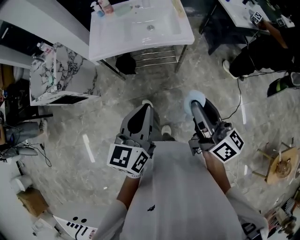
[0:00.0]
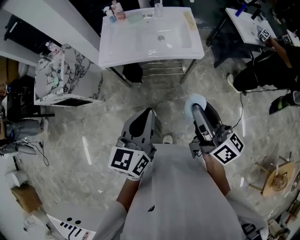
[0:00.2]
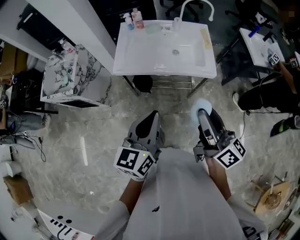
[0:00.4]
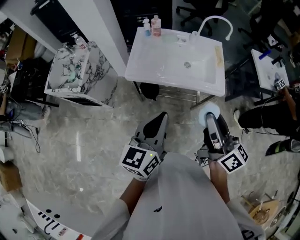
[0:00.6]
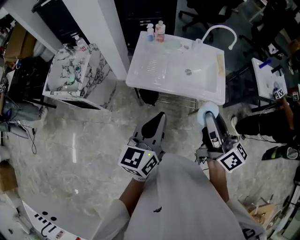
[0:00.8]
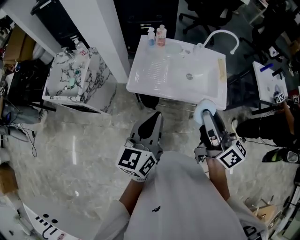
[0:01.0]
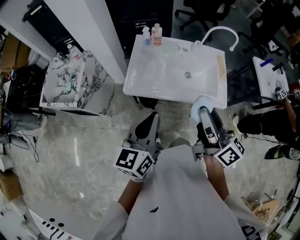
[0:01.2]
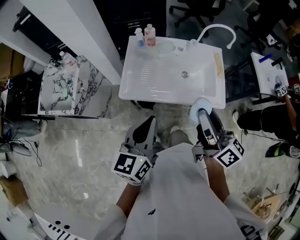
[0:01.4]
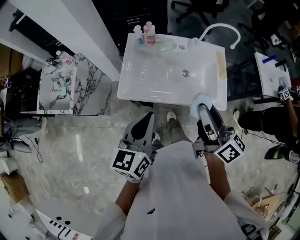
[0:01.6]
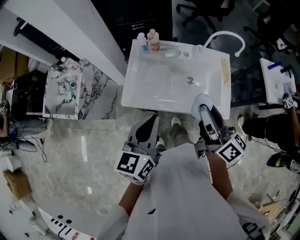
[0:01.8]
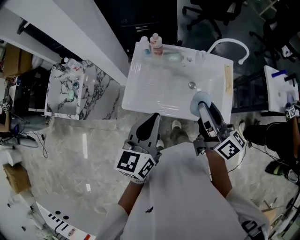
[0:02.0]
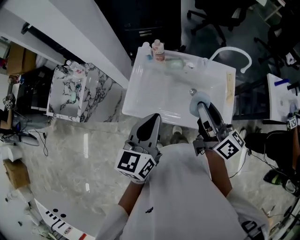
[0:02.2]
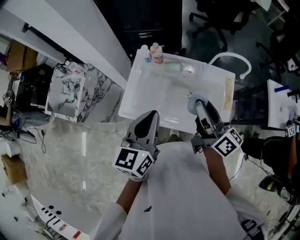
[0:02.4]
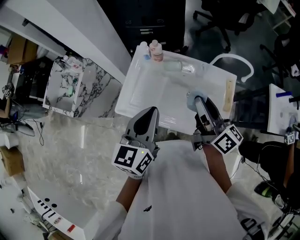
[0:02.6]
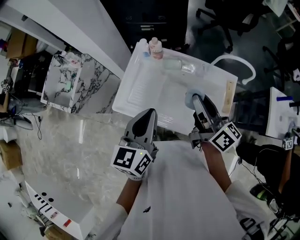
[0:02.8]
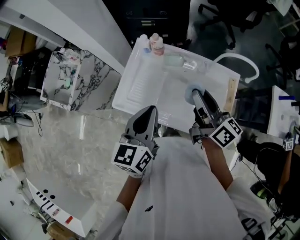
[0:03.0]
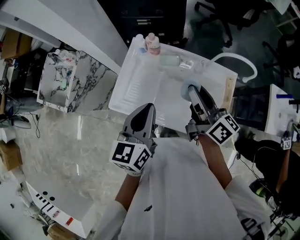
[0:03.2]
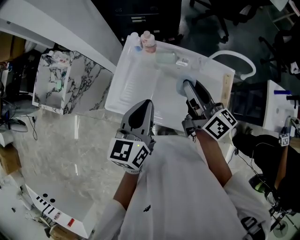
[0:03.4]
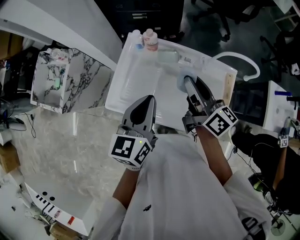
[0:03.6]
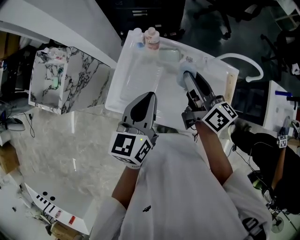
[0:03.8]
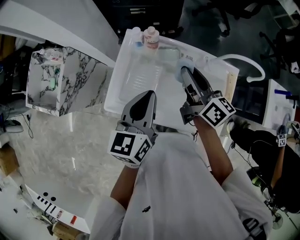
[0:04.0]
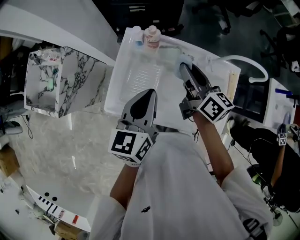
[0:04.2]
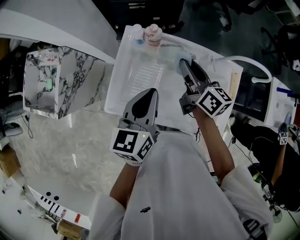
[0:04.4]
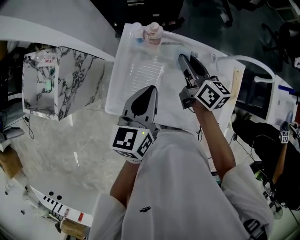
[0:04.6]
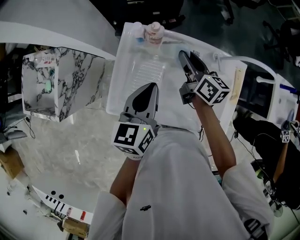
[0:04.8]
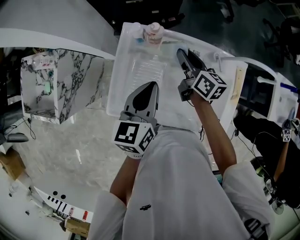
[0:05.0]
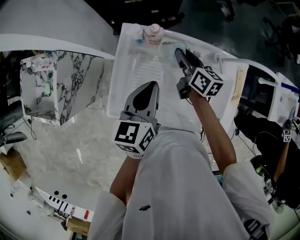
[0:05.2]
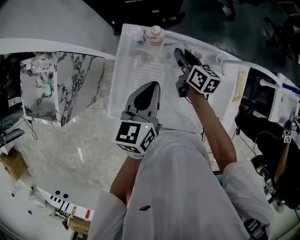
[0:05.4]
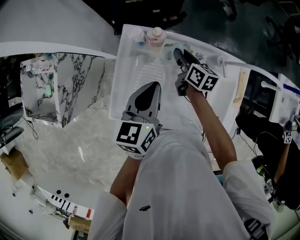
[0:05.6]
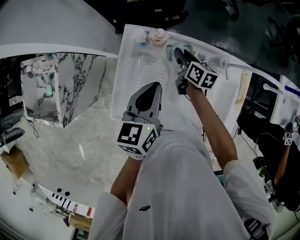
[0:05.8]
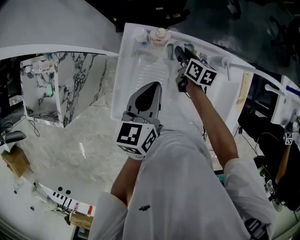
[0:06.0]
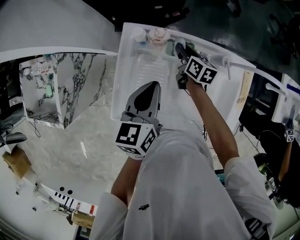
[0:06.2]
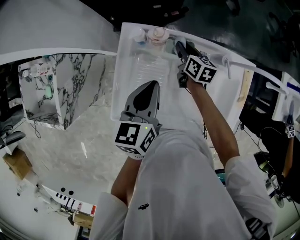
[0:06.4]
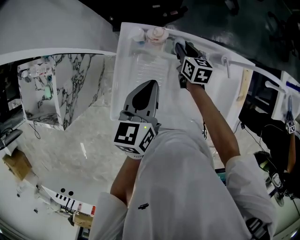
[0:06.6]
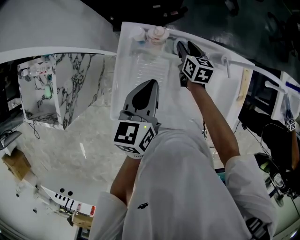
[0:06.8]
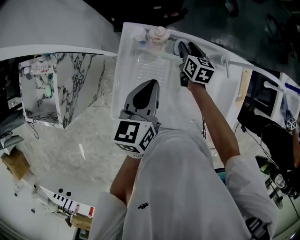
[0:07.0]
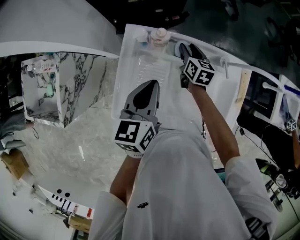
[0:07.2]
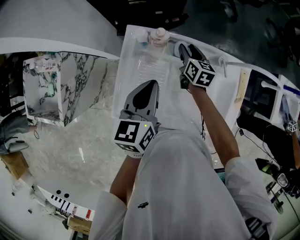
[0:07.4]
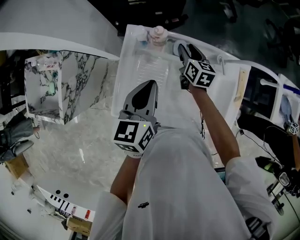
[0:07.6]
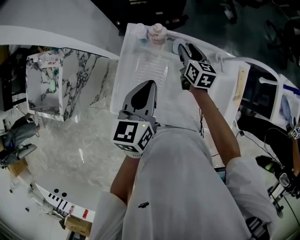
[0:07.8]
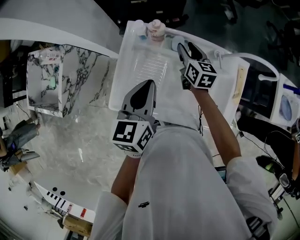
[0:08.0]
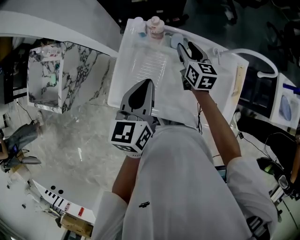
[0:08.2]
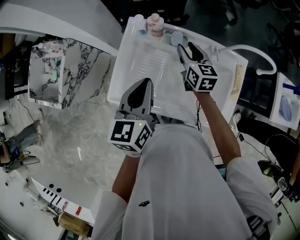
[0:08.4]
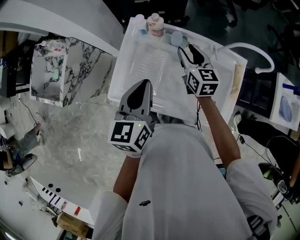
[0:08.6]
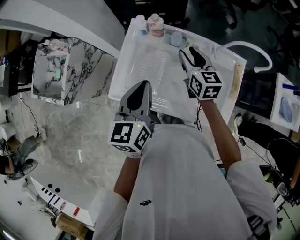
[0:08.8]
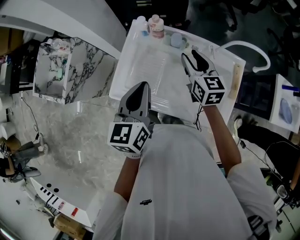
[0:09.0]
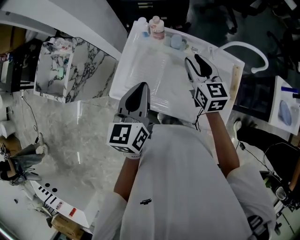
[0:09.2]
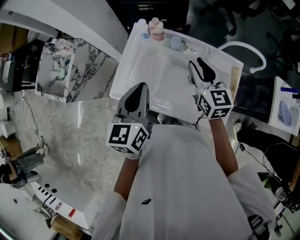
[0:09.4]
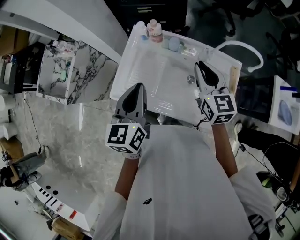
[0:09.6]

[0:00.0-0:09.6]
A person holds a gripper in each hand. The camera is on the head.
0:00.0 to 0:01.6: Both grippers move forward, approximately 35 cm.
0:01.6 to 0:03.2: The right gripper shifts roughly 25 cm forward. The left gripper heads forward and to the right, covering roughly 20 cm.
0:03.2 to 0:04.8: Both grippers move forward and downward, about 20 cm.
0:04.8 to 0:06.4: The left gripper moves forward, some 5 cm. Meanwhile the right gripper is displaced downward and forward by approximately 15 cm.
0:06.4 to 0:08.0: The right gripper heads upward, covering roughly 10 cm. Meanwhile the left gripper travels backward by approximately 5 cm.
0:08.0 to 0:09.6: The left gripper goes about 10 cm backward and upward. Meanwhile the right gripper goes about 25 cm upward and backward, swivels some 20 degrees, and closes up.

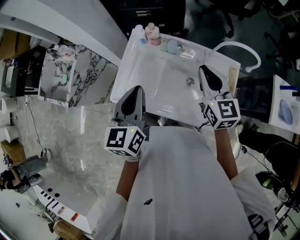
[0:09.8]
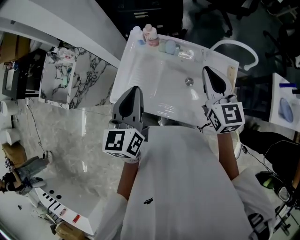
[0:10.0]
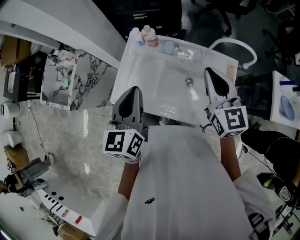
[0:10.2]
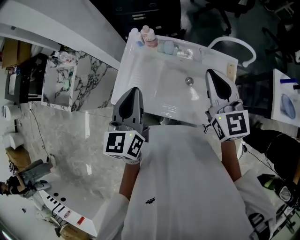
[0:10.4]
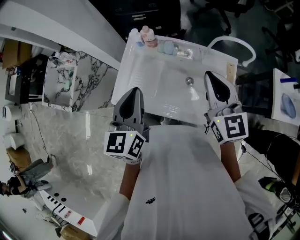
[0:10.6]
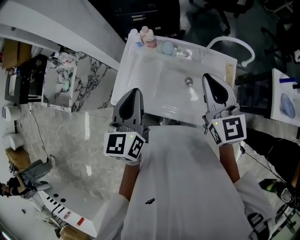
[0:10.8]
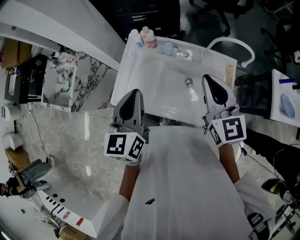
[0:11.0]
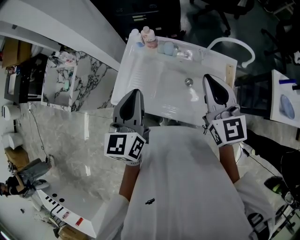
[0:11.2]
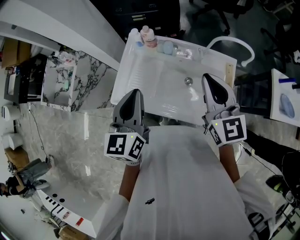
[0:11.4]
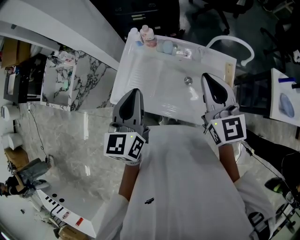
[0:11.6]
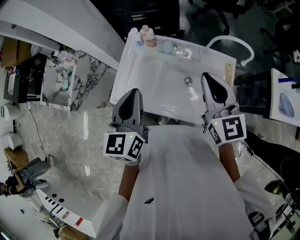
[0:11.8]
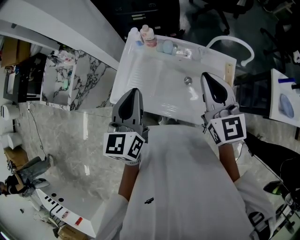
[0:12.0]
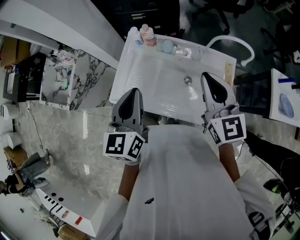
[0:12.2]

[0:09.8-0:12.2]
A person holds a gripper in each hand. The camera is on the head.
0:09.8 to 0:11.0: The right gripper moves upward and backward, roughly 10 cm.
0:11.0 to 0:12.2: Neither gripper changes place.

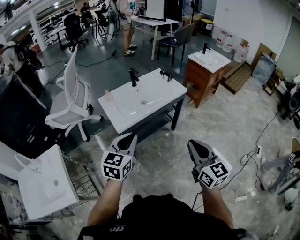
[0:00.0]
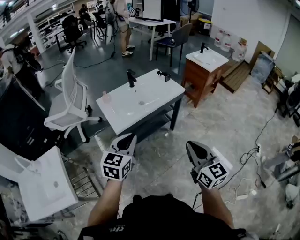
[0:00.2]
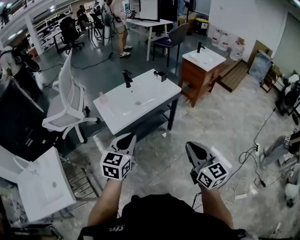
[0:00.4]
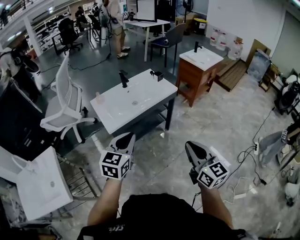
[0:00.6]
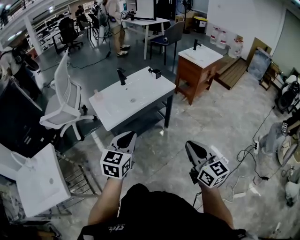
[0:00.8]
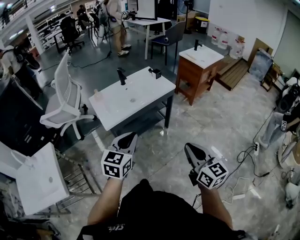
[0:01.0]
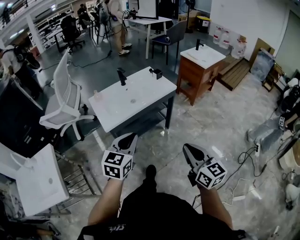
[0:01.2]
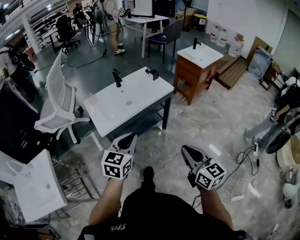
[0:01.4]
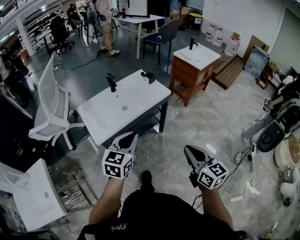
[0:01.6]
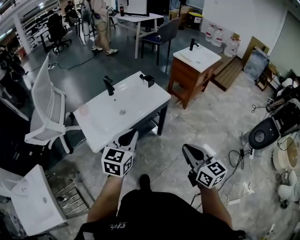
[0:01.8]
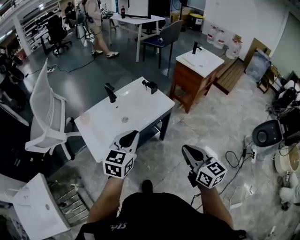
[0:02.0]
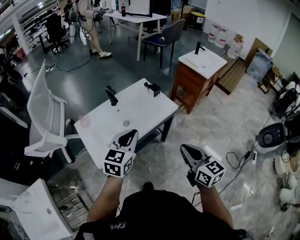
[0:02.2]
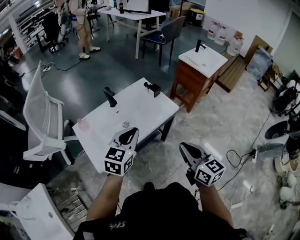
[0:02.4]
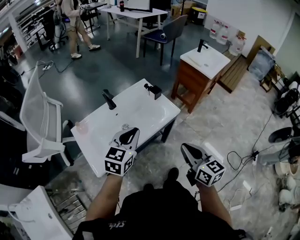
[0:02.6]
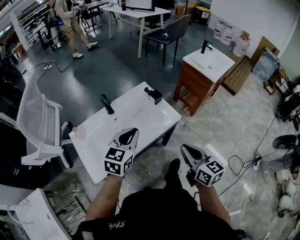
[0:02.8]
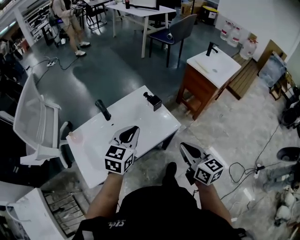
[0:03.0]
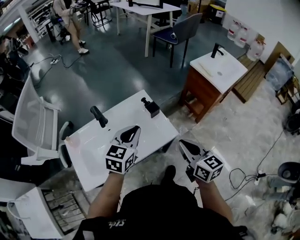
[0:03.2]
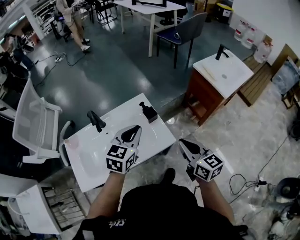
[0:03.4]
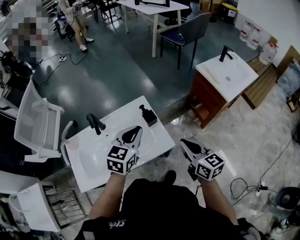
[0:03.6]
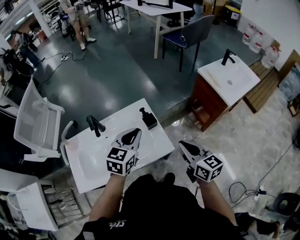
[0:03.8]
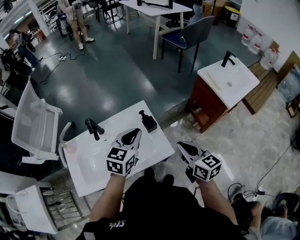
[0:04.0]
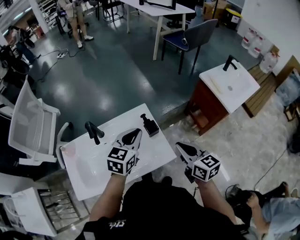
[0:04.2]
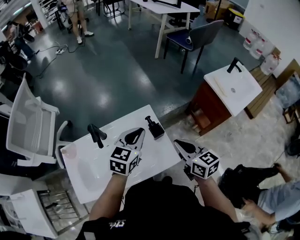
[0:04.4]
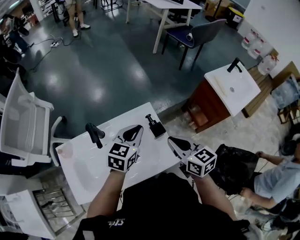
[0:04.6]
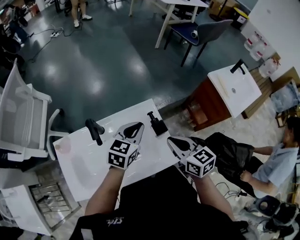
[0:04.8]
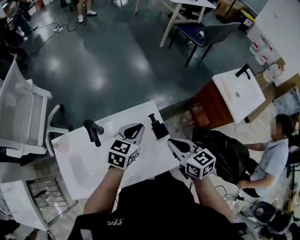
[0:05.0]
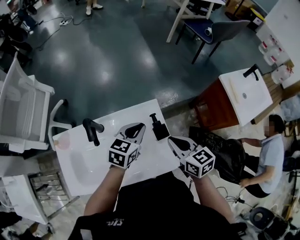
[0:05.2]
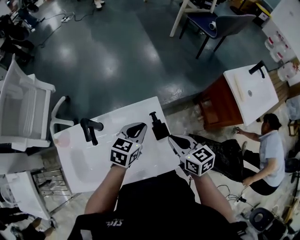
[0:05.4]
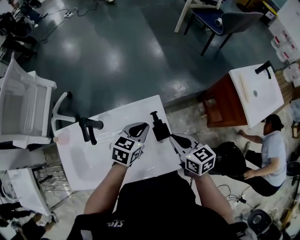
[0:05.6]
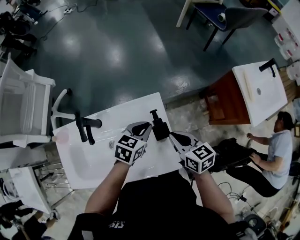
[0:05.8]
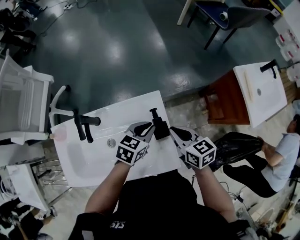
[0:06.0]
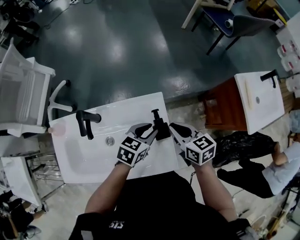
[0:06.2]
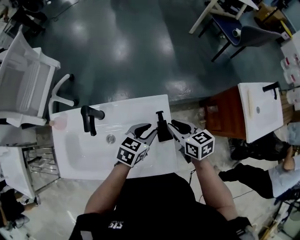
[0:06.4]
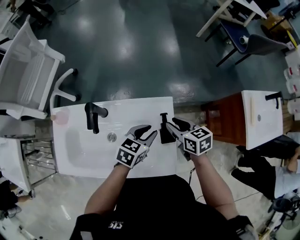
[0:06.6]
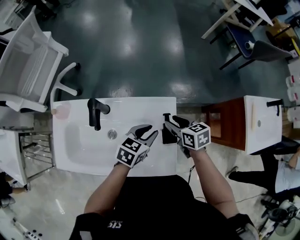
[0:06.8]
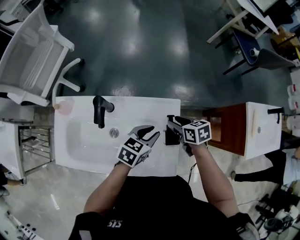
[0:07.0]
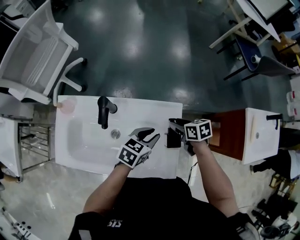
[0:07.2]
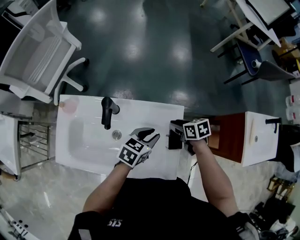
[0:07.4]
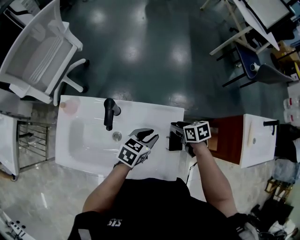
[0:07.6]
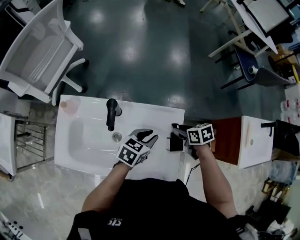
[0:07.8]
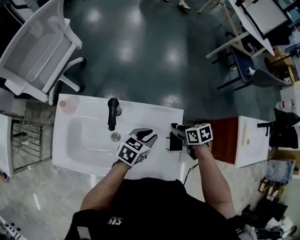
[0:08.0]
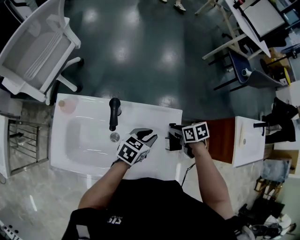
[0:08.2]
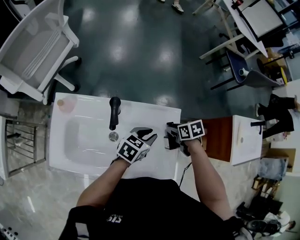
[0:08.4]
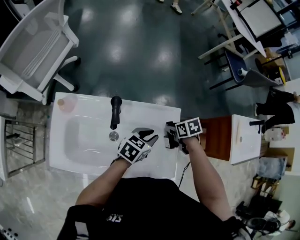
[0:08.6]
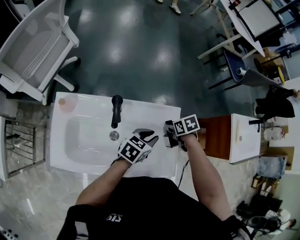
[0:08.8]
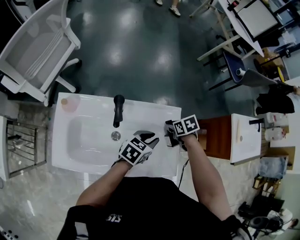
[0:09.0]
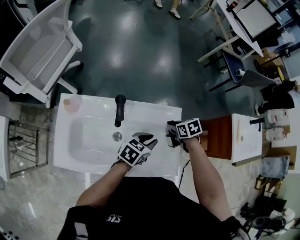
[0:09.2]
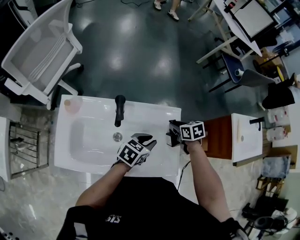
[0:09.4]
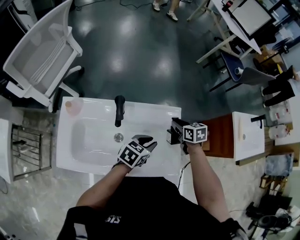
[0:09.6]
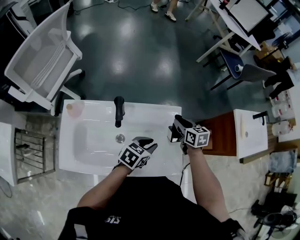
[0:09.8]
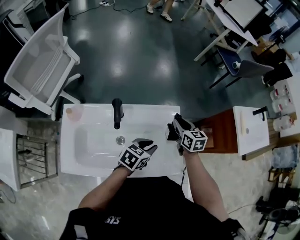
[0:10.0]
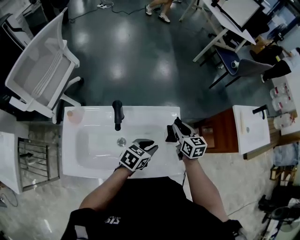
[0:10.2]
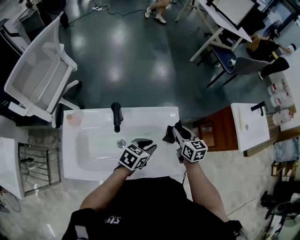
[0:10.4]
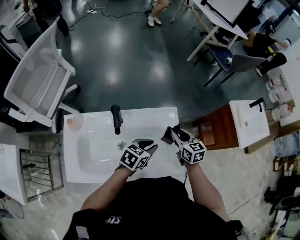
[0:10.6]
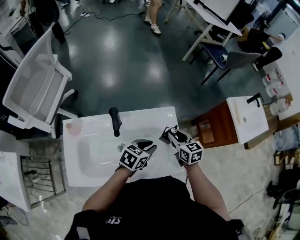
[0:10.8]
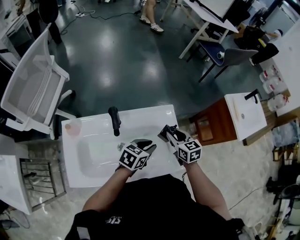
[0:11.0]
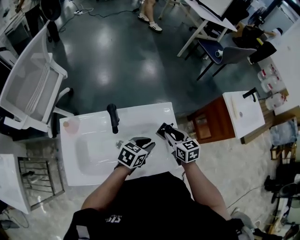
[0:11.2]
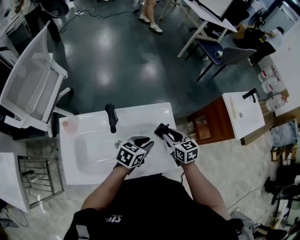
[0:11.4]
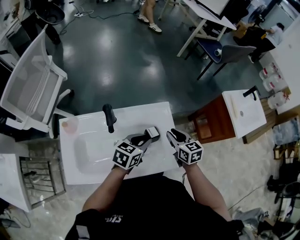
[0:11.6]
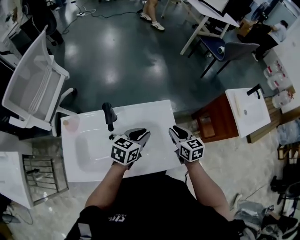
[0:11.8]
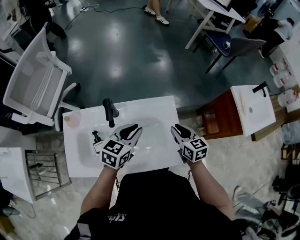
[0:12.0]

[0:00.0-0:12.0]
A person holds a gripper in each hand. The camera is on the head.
0:00.0 to 0:01.6: The right gripper heads to the right, forward and downward, covering some 15 cm. The left gripper travels to the right and forward by approximately 20 cm.
0:01.6 to 0:03.0: The two grippers go approximately 40 cm forward.
0:03.0 to 0:04.4: The right gripper shifts some 25 cm forward. Meanwhile the left gripper heads forward and to the right, covering some 25 cm.
0:04.4 to 0:06.0: Both grippers move downward and forward, roughly 20 cm. The left gripper rotates approximately 20 degrees.
0:06.0 to 0:07.6: The left gripper goes some 10 cm to the left. Meanwhile the right gripper shifts roughly 15 cm forward, downward and to the left, rotates some 30 degrees, and opens its fingers.
0:07.6 to 0:09.0: The grippers move only a little.
0:09.0 to 0:10.4: The right gripper moves upward, some 10 cm, and tips its fingers upward by approximately 40 degrees.
0:10.4 to 0:12.0: The left gripper heads upward, covering some 10 cm; the right gripper changes place by some 5 cm.
